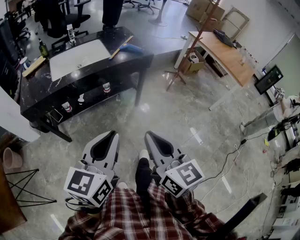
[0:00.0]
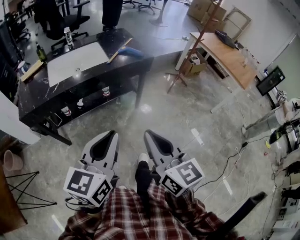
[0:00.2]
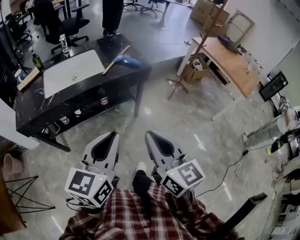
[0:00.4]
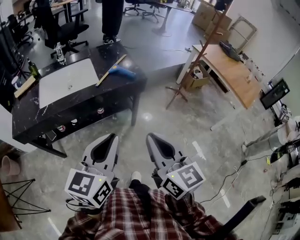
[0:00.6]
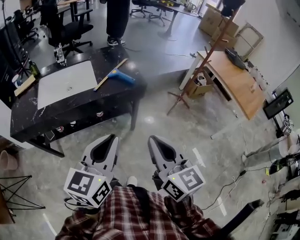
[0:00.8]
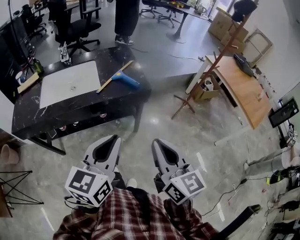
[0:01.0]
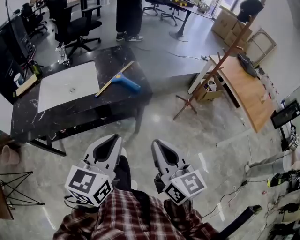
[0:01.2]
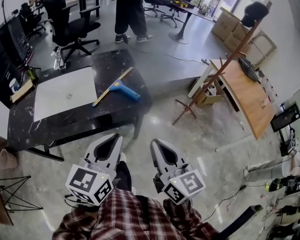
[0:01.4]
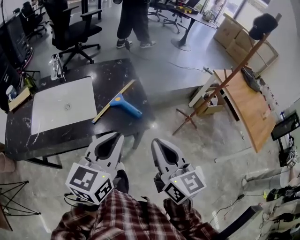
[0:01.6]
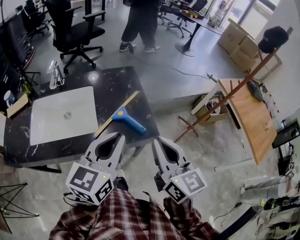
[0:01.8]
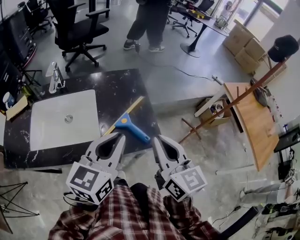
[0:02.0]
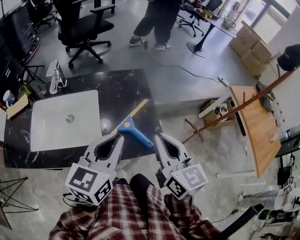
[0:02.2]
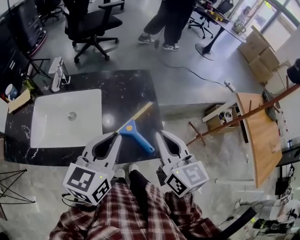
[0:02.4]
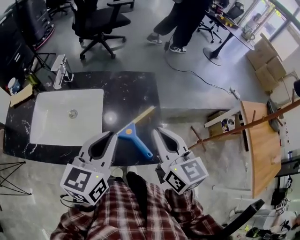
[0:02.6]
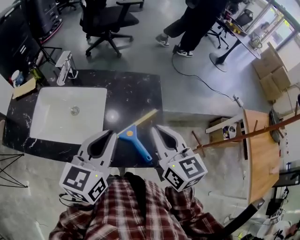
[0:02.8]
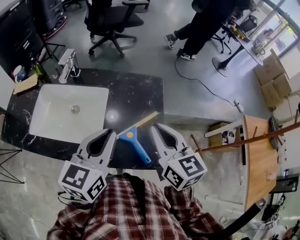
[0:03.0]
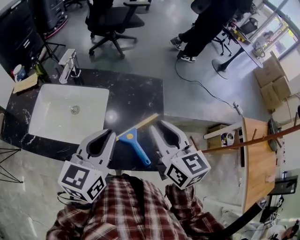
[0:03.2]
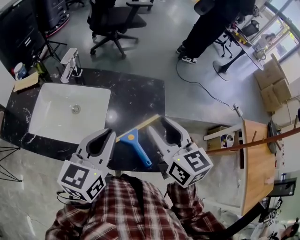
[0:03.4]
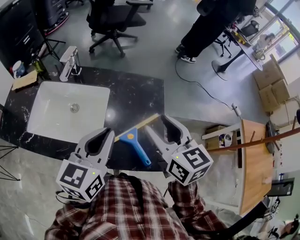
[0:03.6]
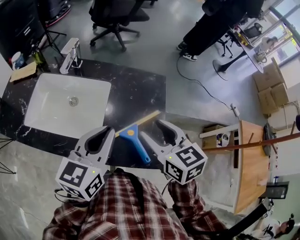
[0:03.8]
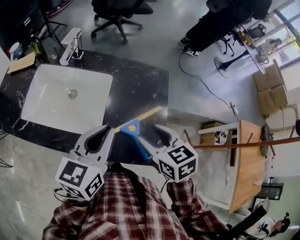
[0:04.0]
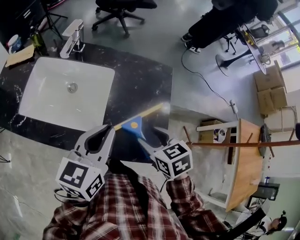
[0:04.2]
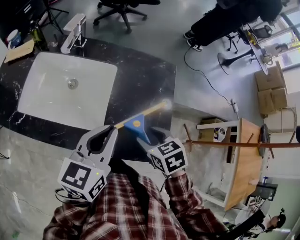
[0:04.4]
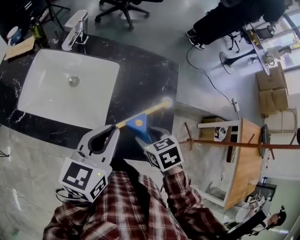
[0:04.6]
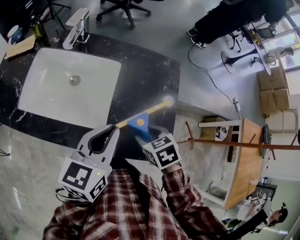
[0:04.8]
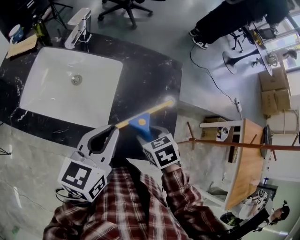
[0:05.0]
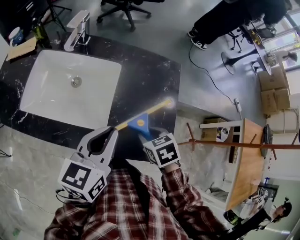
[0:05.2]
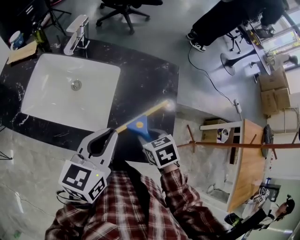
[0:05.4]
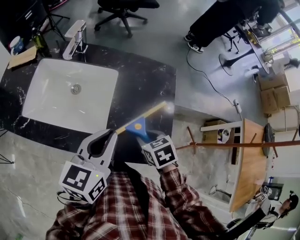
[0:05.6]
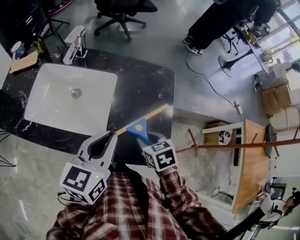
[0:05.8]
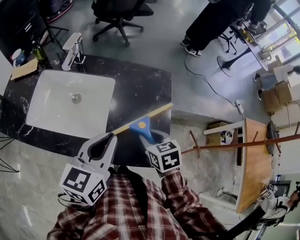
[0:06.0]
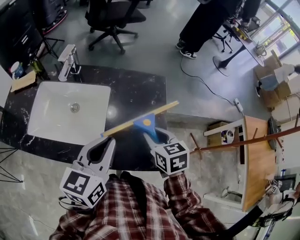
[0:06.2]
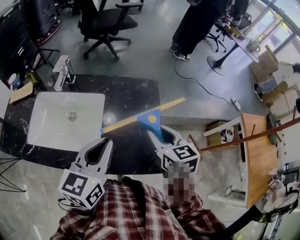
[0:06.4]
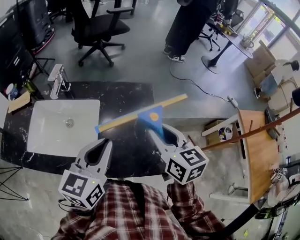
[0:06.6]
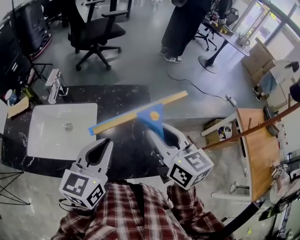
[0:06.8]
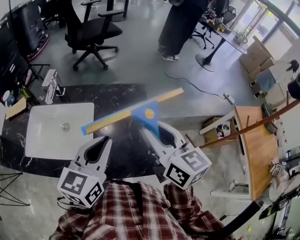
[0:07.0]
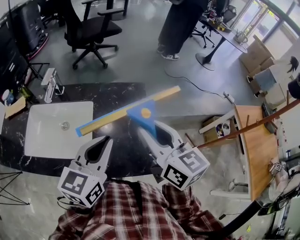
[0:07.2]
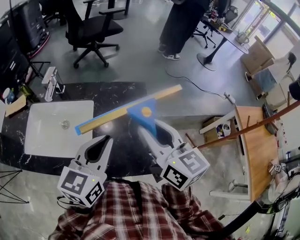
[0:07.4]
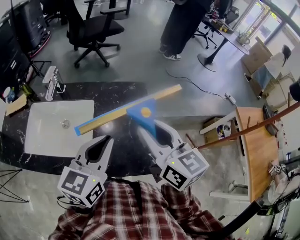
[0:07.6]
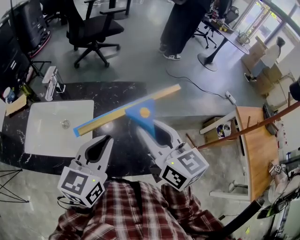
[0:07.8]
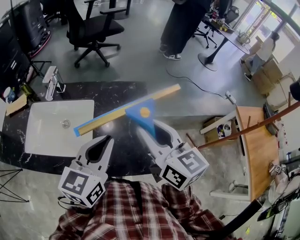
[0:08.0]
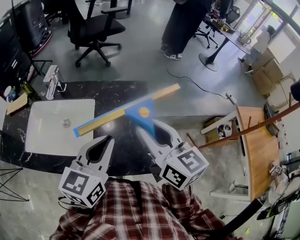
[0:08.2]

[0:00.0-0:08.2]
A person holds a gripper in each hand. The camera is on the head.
0:00.0 to 0:01.6: The two grippers travel together, forward, approximately 50 cm.
0:01.6 to 0:03.2: The two grippers go some 25 cm forward. The right gripper changes its angle by approximately 20 degrees. The left gripper rotates about 20 degrees.
0:03.2 to 0:05.0: The right gripper moves downward, roughly 25 cm, angles its fingers downward, by about 50 degrees, and opens up. The left gripper goes approximately 10 cm downward.
0:05.0 to 0:06.6: The right gripper goes some 20 cm upward, and points its fingers some 50 degrees further upward. Meanwhile the left gripper is displaced upward by approximately 5 cm.
0:06.6 to 0:08.2: The right gripper heads upward, covering about 5 cm.

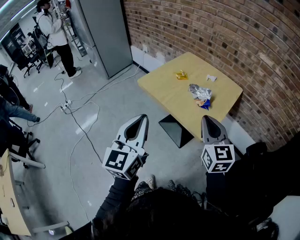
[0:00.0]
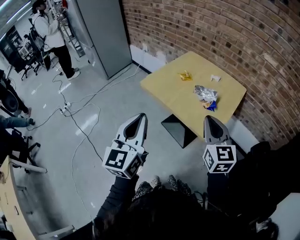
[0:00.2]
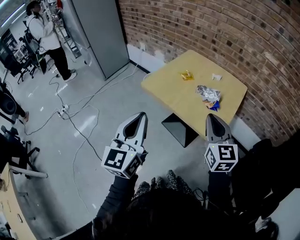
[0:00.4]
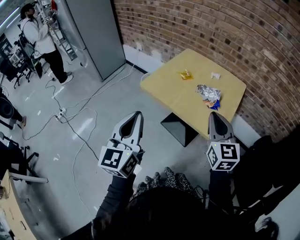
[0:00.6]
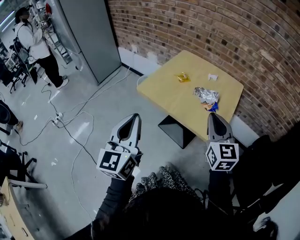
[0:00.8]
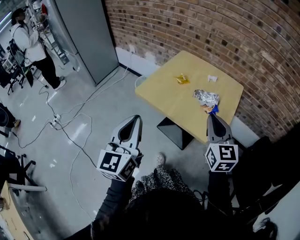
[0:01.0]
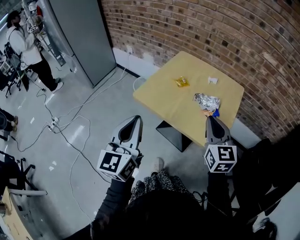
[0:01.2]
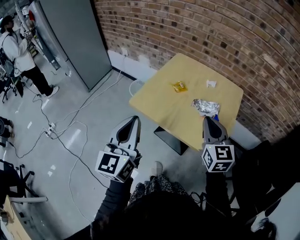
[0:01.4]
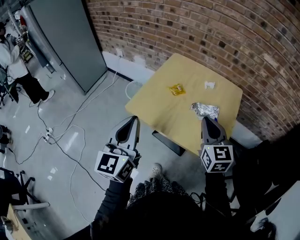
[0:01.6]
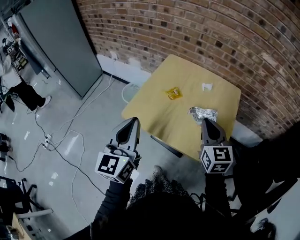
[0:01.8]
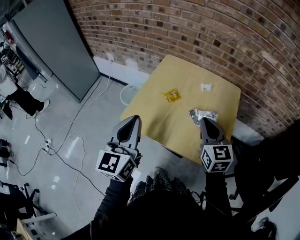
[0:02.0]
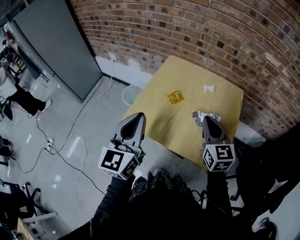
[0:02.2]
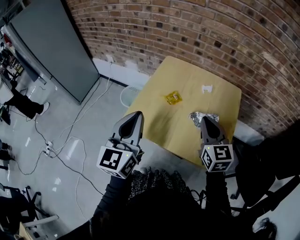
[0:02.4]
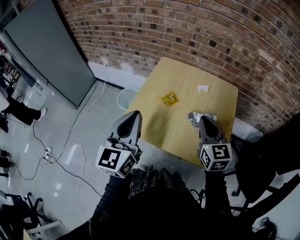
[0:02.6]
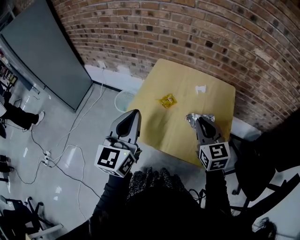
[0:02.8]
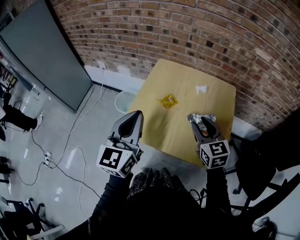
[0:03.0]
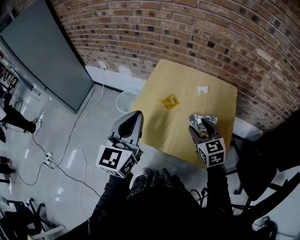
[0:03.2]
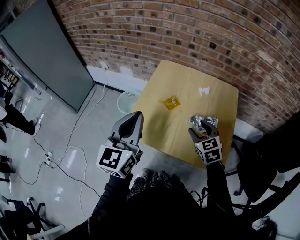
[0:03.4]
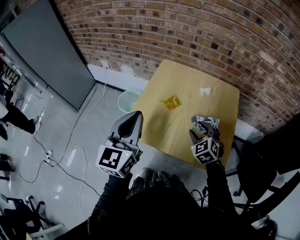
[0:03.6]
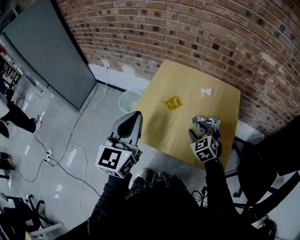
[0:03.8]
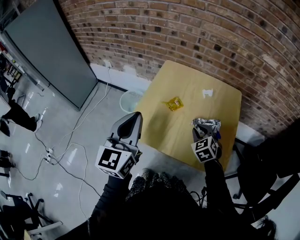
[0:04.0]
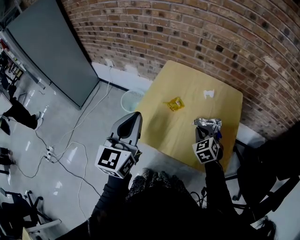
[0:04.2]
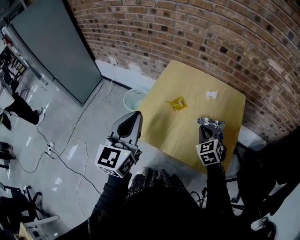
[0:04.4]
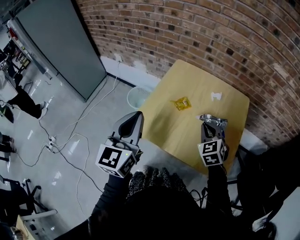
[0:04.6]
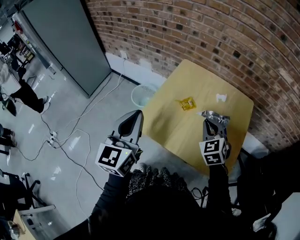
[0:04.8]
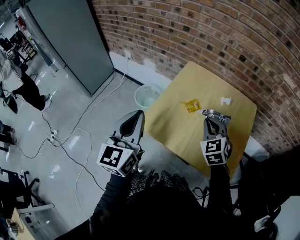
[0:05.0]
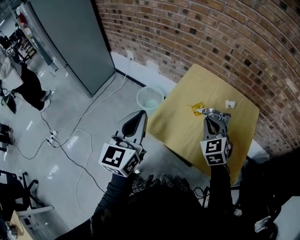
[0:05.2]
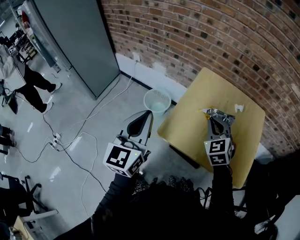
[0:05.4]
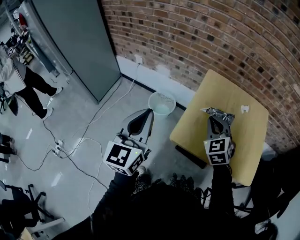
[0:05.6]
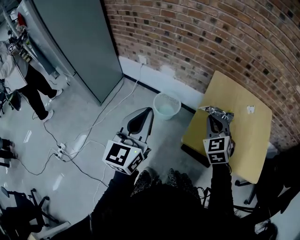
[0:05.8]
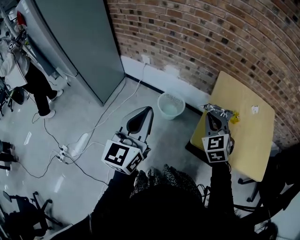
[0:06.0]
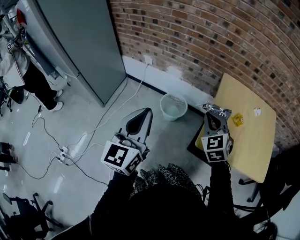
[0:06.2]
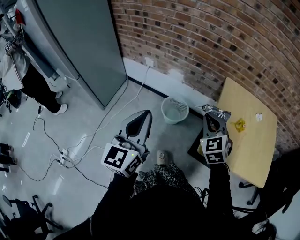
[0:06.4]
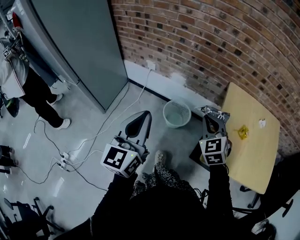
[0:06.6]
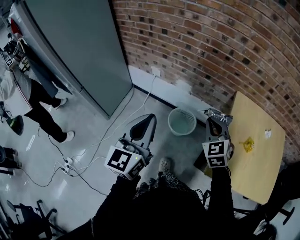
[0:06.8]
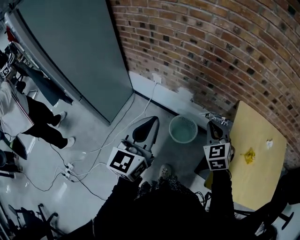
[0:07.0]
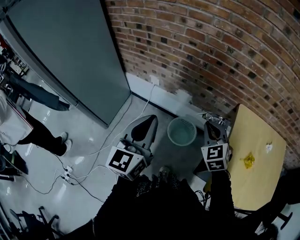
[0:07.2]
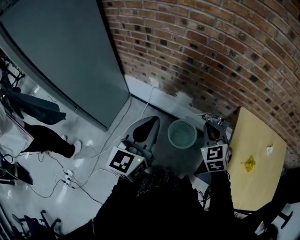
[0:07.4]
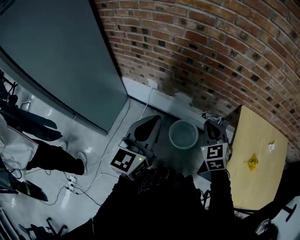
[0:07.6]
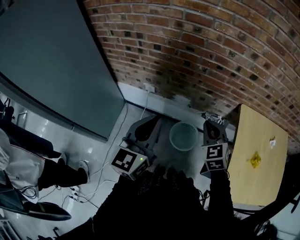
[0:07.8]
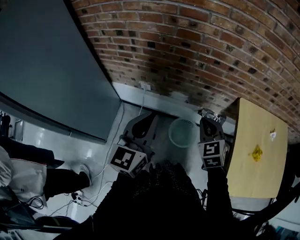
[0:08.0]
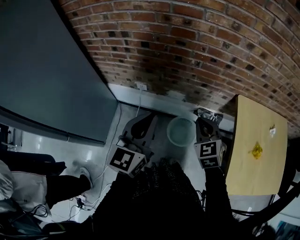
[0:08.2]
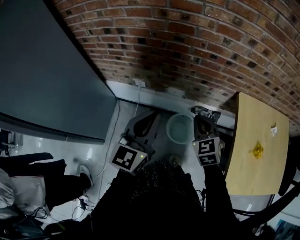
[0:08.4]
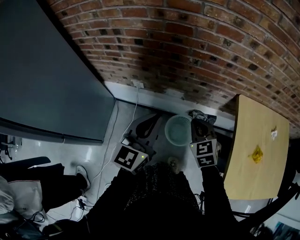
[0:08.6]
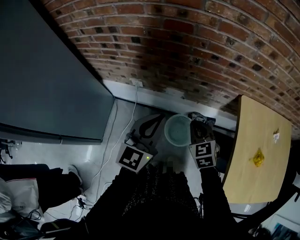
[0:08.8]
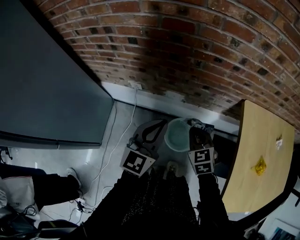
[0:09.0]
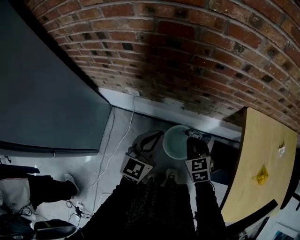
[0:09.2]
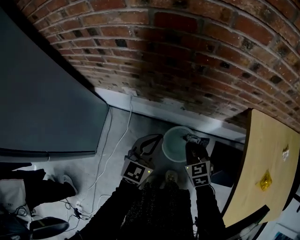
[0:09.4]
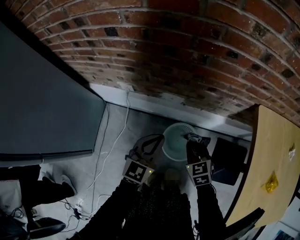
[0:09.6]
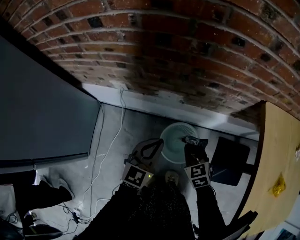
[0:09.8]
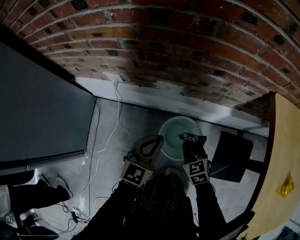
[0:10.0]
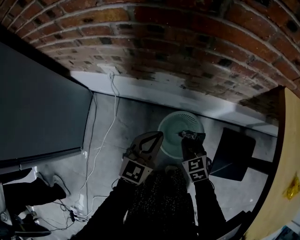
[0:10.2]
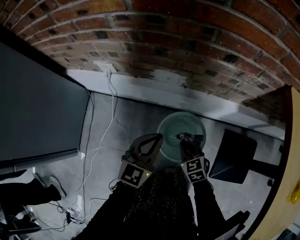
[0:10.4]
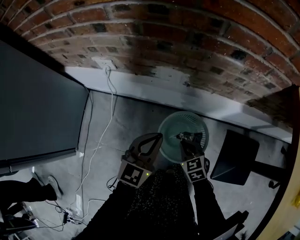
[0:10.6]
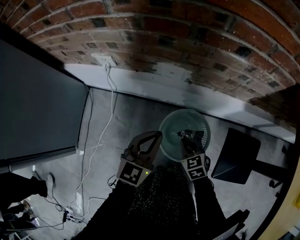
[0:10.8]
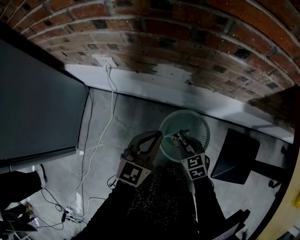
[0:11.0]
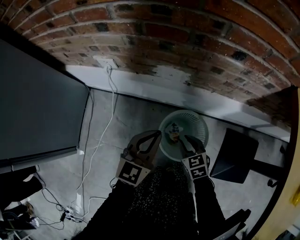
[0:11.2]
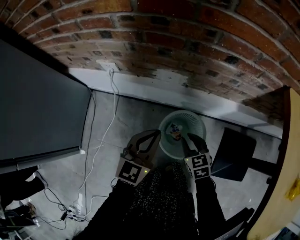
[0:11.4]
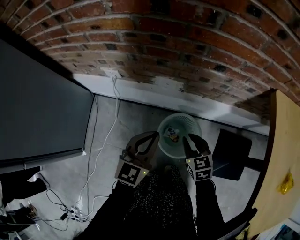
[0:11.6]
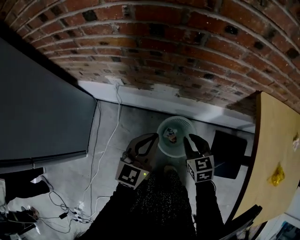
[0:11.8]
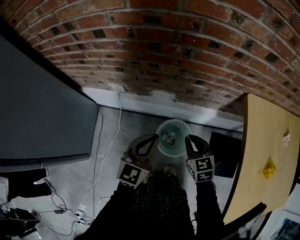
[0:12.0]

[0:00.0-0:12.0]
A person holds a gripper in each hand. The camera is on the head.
0:00.0 to 0:01.6: The left gripper travels forward and to the left by about 25 cm. Meanwhile the right gripper travels forward by about 20 cm.
0:01.6 to 0:03.0: The right gripper goes approximately 10 cm forward, and opens up; the left gripper goes some 15 cm forward.
0:03.0 to 0:04.4: The right gripper travels downward by about 10 cm, swivels approximately 30 degrees, and closes its fingers.
0:04.4 to 0:06.0: The grippers both shift to the left by some 35 cm.
0:06.0 to 0:07.6: The grippers both shift forward and to the left by some 30 cm.
0:07.6 to 0:09.0: The left gripper travels forward and downward by roughly 20 cm, and changes its angle by roughly 20 degrees, while the right gripper travels downward and forward by approximately 15 cm.
0:09.0 to 0:10.4: Both grippers travel together downward, some 40 cm.
0:10.4 to 0:12.0: Both grippers travel together upward, roughly 25 cm.

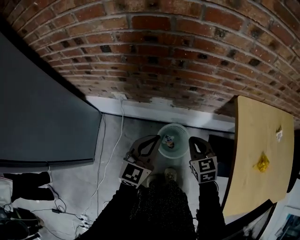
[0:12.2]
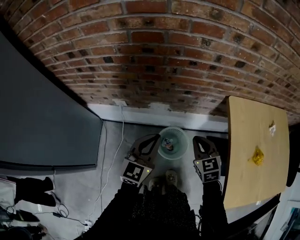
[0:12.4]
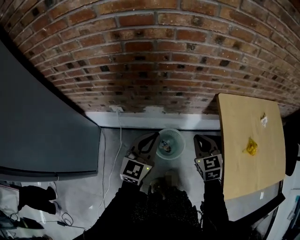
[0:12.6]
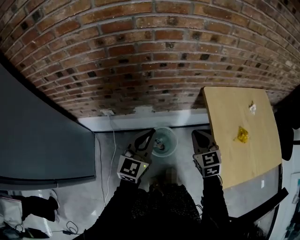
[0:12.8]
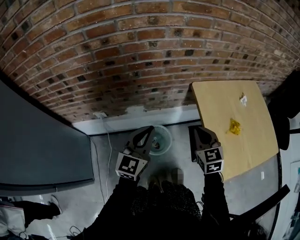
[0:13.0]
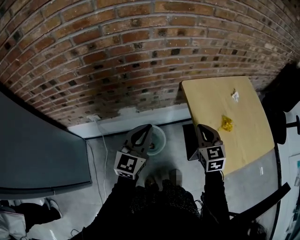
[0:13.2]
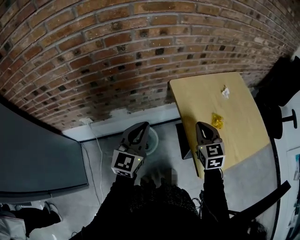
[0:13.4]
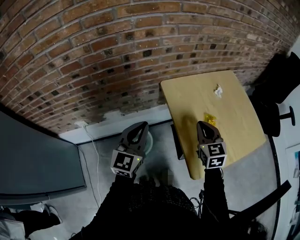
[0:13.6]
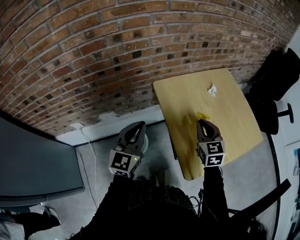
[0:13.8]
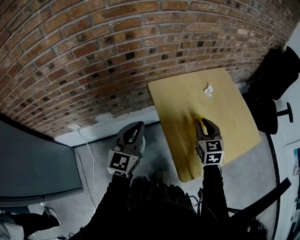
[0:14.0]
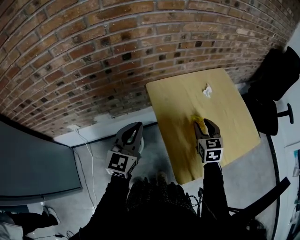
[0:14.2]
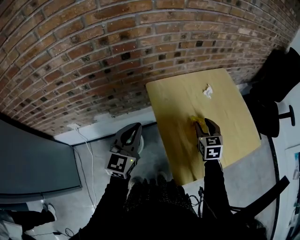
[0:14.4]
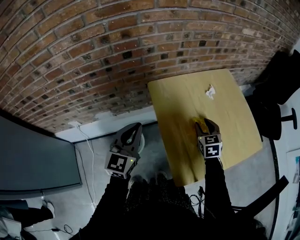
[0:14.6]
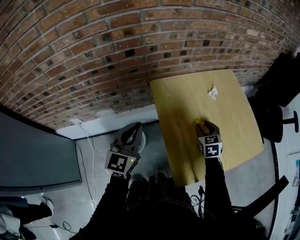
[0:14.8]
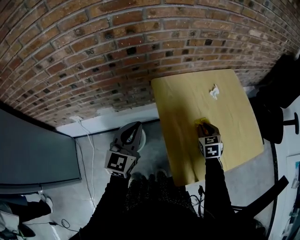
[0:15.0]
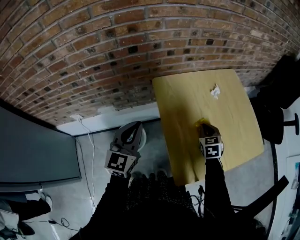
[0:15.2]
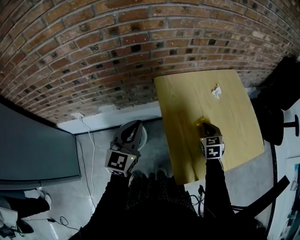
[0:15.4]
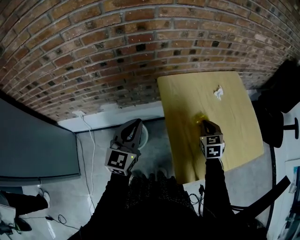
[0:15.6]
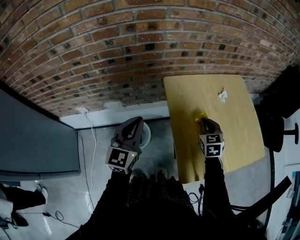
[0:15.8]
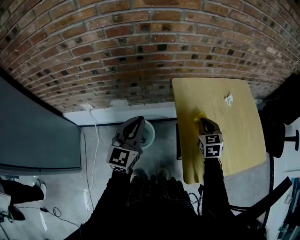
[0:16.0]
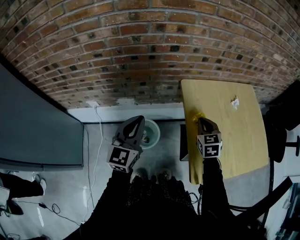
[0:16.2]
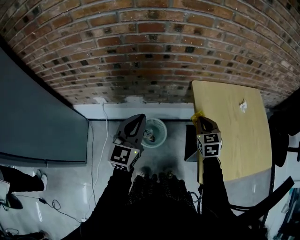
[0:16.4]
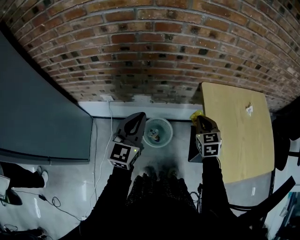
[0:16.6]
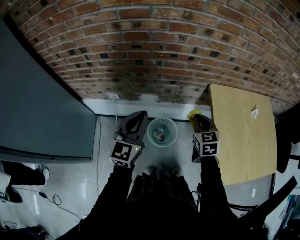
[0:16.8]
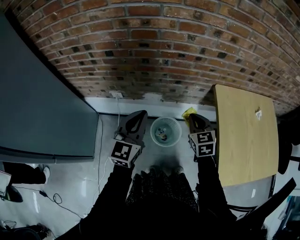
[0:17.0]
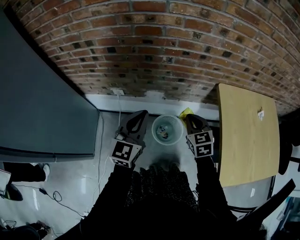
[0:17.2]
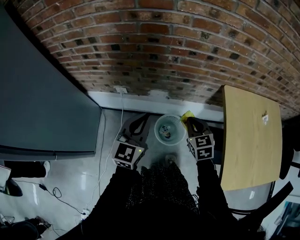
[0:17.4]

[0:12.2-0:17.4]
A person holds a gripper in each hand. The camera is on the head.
0:12.2 to 0:14.0: The left gripper moves some 30 cm, and rotates some 20 degrees. The right gripper changes place by approximately 40 cm, and rotates approximately 40 degrees.
0:14.0 to 0:15.6: The right gripper heads downward, covering approximately 5 cm, and opens and closes again.
0:15.6 to 0:17.4: Both grippers travel together to the left, approximately 35 cm. The right gripper swivels some 30 degrees.
